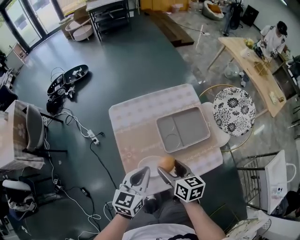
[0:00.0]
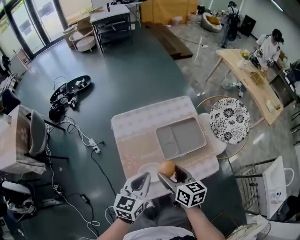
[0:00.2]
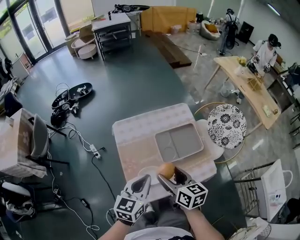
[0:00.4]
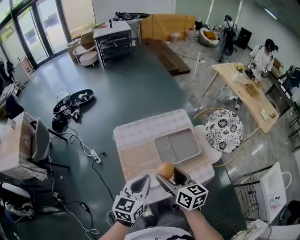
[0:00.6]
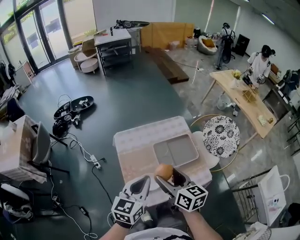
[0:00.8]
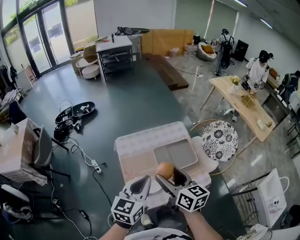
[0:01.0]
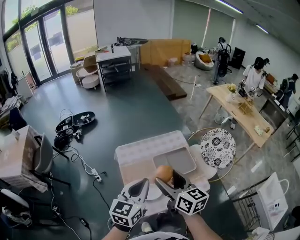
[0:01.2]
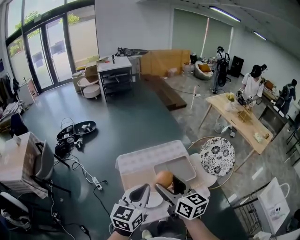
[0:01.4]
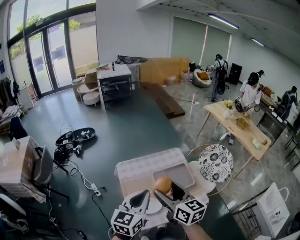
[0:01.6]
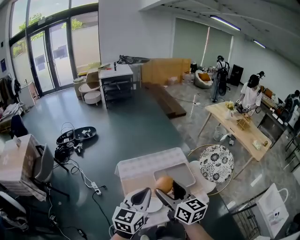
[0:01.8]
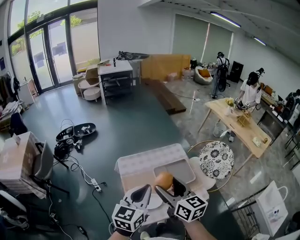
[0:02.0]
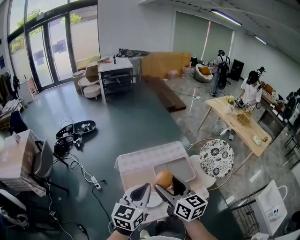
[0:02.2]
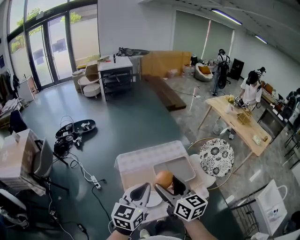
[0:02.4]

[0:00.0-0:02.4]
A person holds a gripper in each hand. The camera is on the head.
0:00.0 to 0:01.2: Both grippers move upward, about 20 cm. The right gripper rotates approximately 20 degrees.
0:01.2 to 0:02.4: The grippers move only a little.

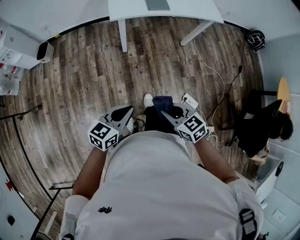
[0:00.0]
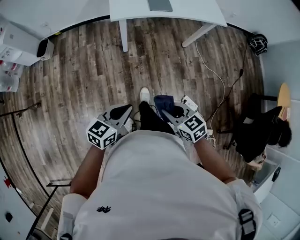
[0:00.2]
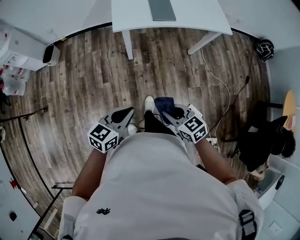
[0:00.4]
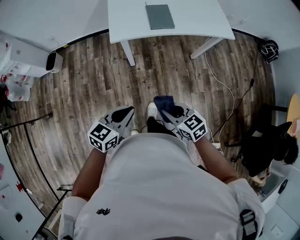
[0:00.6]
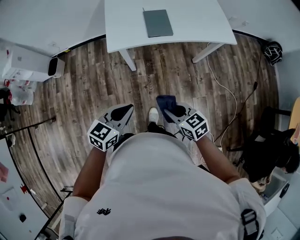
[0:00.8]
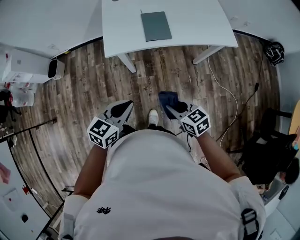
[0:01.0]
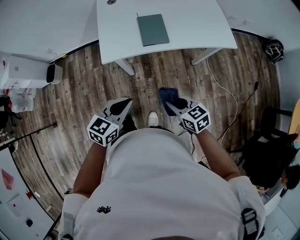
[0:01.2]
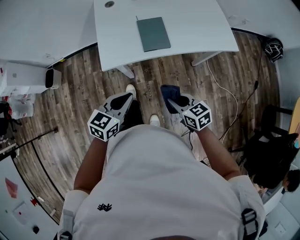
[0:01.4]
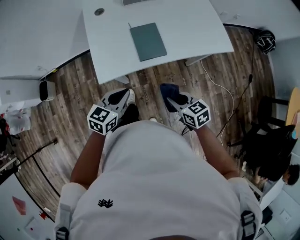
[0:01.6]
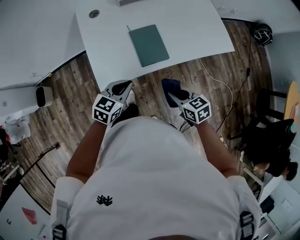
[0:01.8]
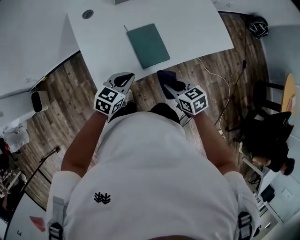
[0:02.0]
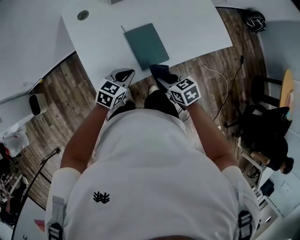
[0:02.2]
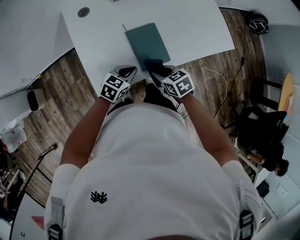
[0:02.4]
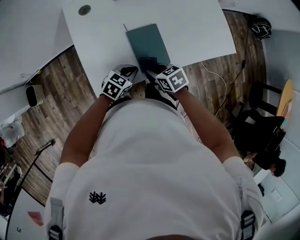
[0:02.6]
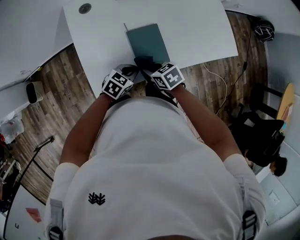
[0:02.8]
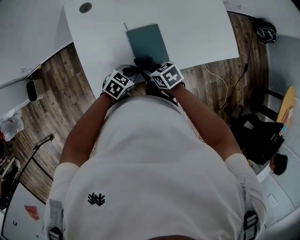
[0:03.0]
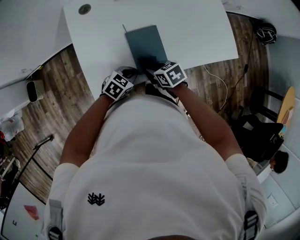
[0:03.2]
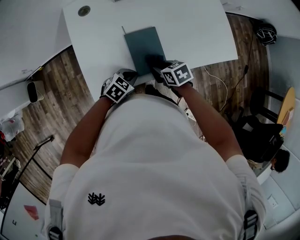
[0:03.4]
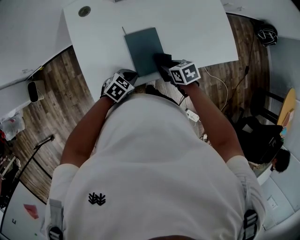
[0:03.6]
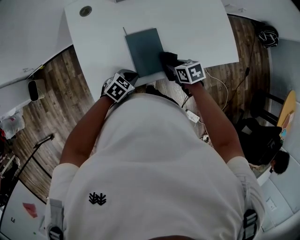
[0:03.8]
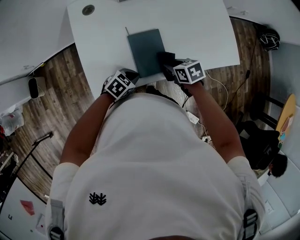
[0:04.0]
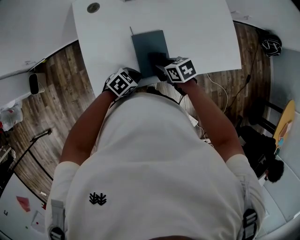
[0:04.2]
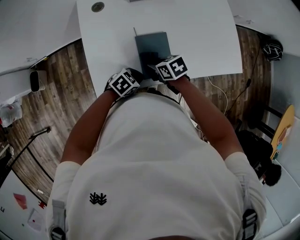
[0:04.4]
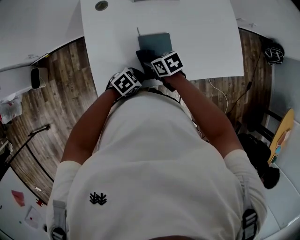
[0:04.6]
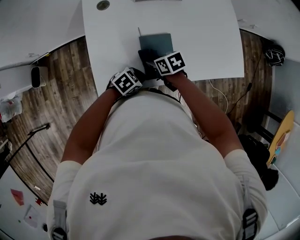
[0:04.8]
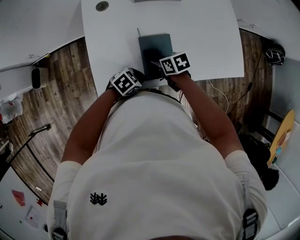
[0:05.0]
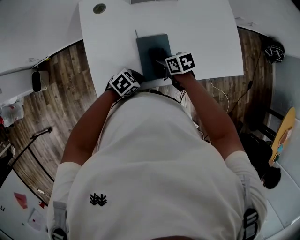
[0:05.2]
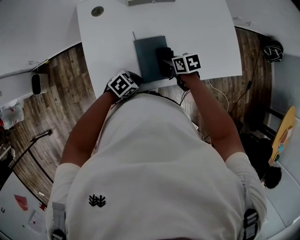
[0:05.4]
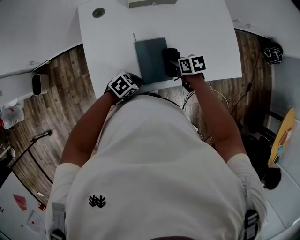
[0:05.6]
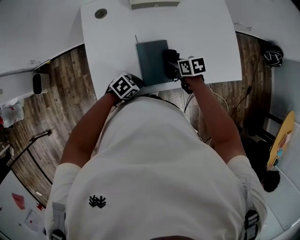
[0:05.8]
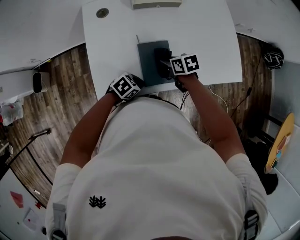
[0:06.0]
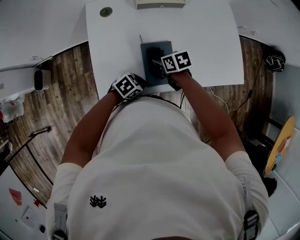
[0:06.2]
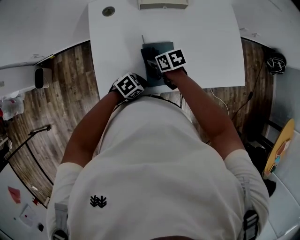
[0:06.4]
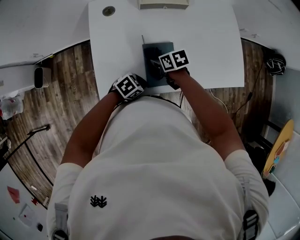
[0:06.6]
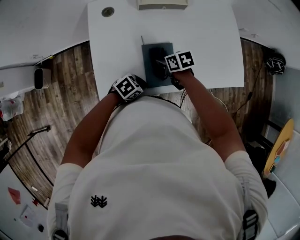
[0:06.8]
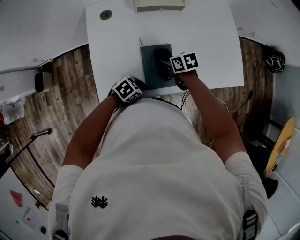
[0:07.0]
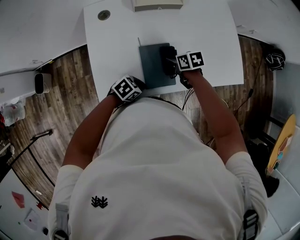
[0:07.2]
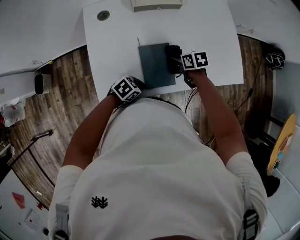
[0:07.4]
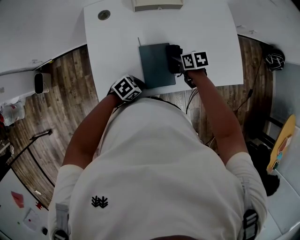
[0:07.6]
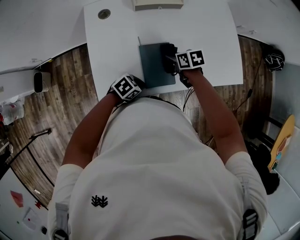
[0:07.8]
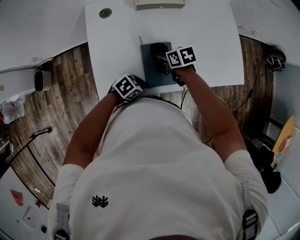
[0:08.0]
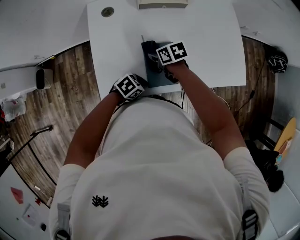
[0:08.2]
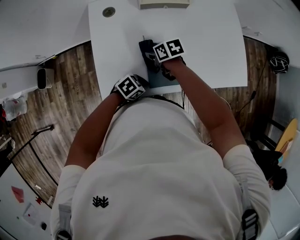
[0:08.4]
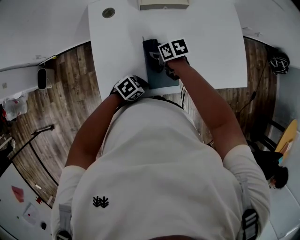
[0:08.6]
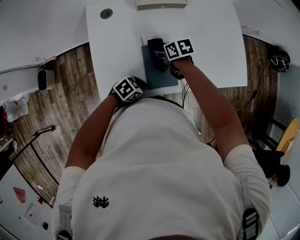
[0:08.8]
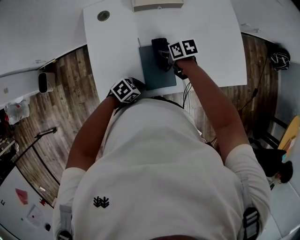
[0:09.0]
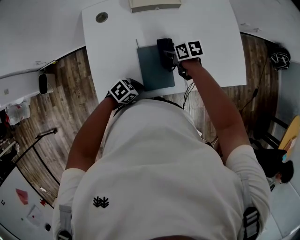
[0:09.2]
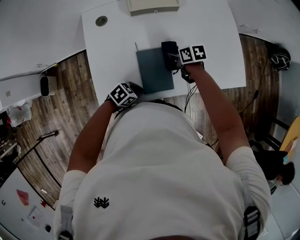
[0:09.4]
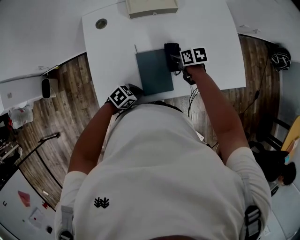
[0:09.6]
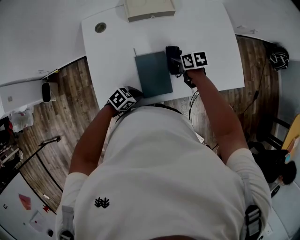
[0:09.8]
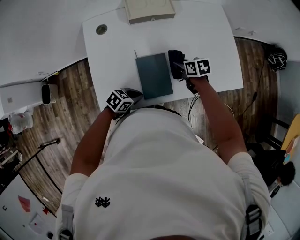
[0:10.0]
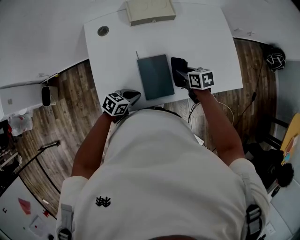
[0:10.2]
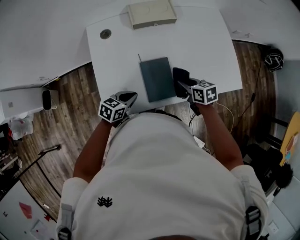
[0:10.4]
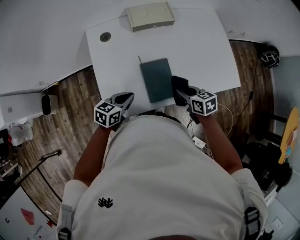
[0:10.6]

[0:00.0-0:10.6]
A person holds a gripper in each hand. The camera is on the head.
0:00.0 to 0:01.6: Both grippers are carried forward, some 40 cm.
0:01.6 to 0:03.0: The left gripper changes place by about 20 cm, and changes its angle by some 30 degrees, while the right gripper shifts by approximately 20 cm.
0:06.0 to 0:07.6: The right gripper moves approximately 5 cm.
0:09.0 to 0:10.6: The left gripper shifts about 10 cm upward, and rotates approximately 30 degrees, while the right gripper moves roughly 15 cm.

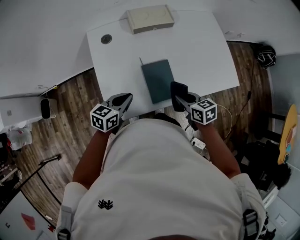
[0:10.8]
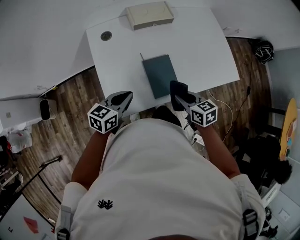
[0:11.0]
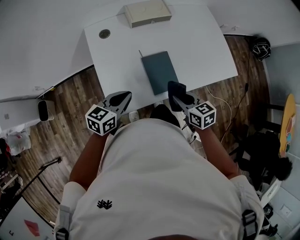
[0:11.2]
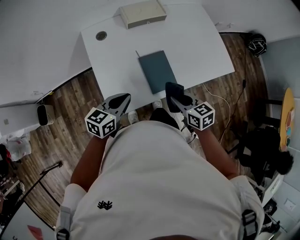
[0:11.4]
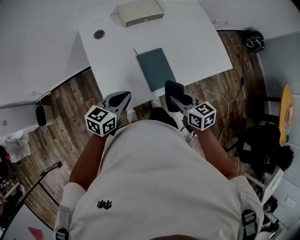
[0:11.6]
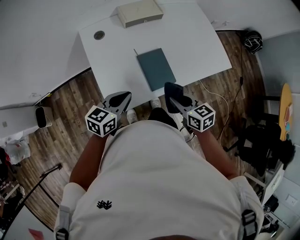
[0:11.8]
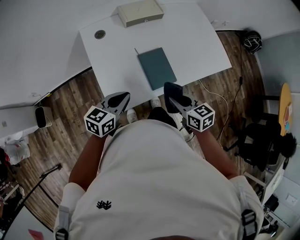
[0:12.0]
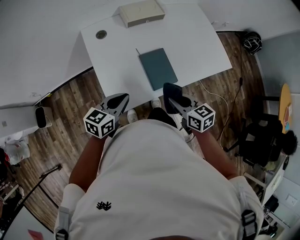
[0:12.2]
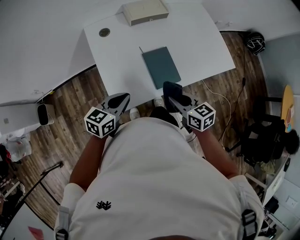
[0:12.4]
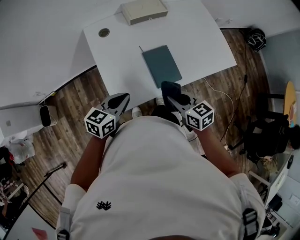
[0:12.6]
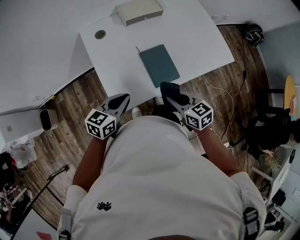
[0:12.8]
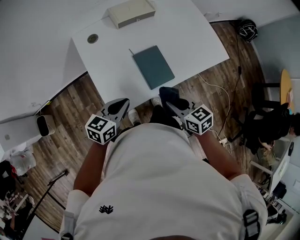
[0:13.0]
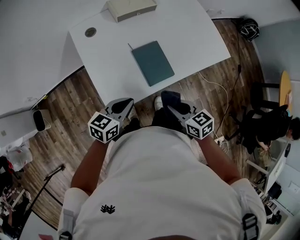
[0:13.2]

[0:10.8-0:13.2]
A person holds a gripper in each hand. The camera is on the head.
0:10.8 to 0:12.0: The left gripper shifts by approximately 5 cm; the right gripper goes about 10 cm backward.
0:12.0 to 0:13.2: The grippers stay close to where they were, moving slightly.

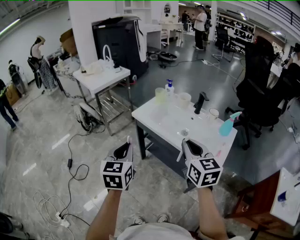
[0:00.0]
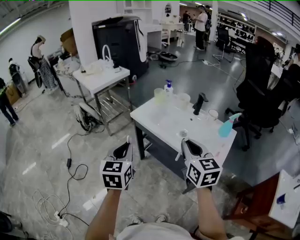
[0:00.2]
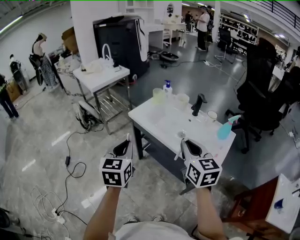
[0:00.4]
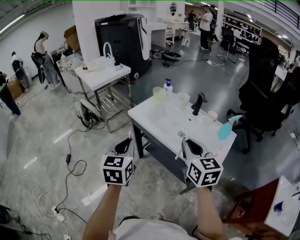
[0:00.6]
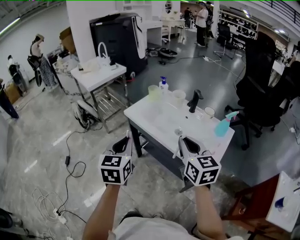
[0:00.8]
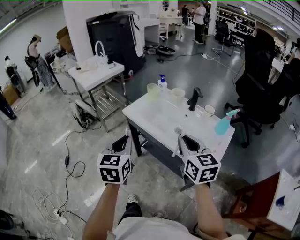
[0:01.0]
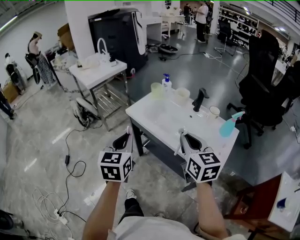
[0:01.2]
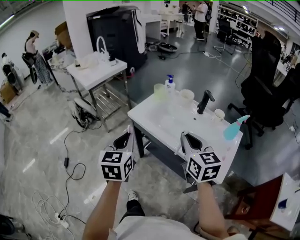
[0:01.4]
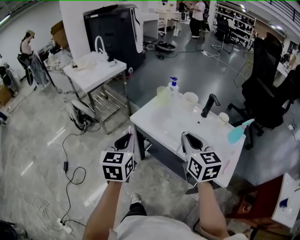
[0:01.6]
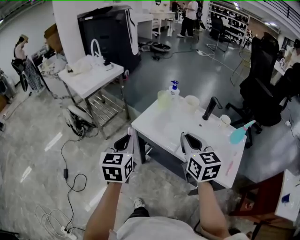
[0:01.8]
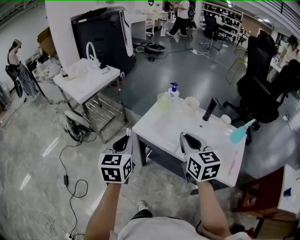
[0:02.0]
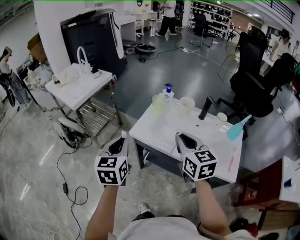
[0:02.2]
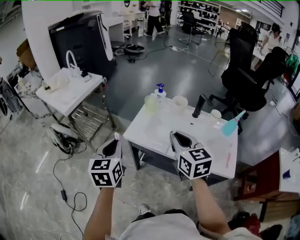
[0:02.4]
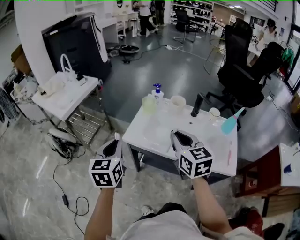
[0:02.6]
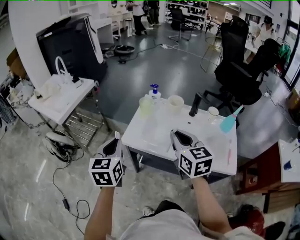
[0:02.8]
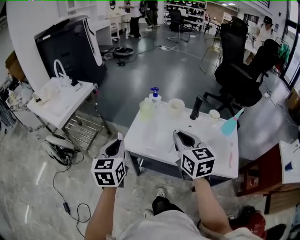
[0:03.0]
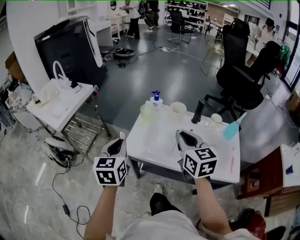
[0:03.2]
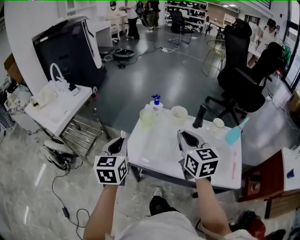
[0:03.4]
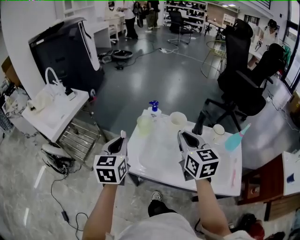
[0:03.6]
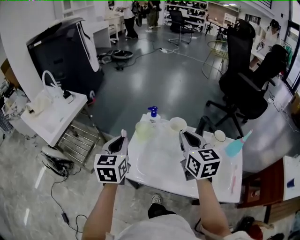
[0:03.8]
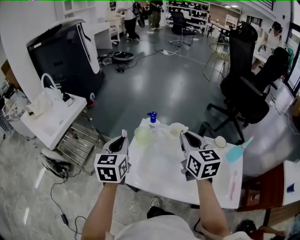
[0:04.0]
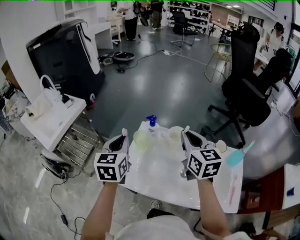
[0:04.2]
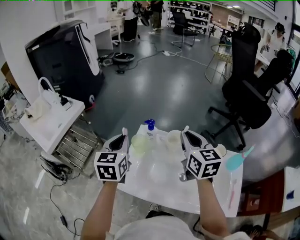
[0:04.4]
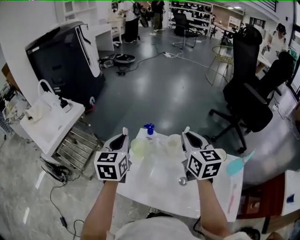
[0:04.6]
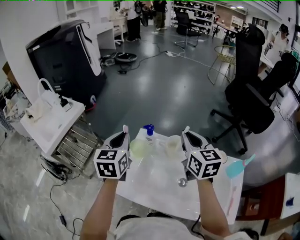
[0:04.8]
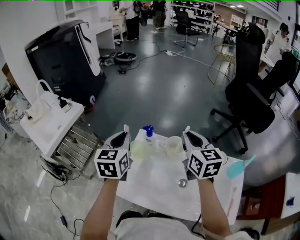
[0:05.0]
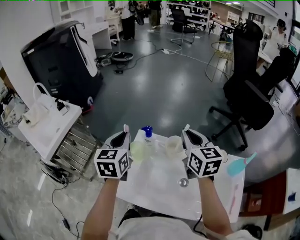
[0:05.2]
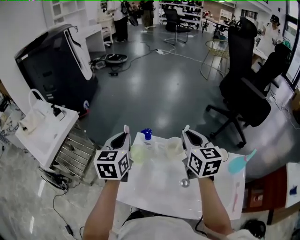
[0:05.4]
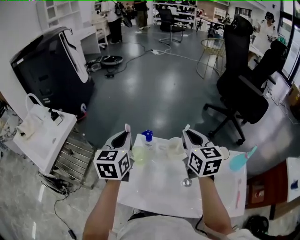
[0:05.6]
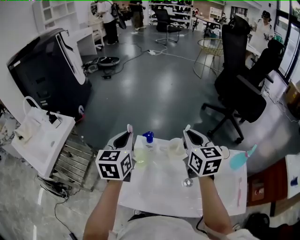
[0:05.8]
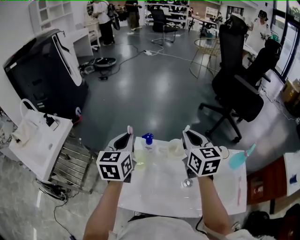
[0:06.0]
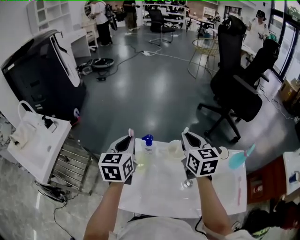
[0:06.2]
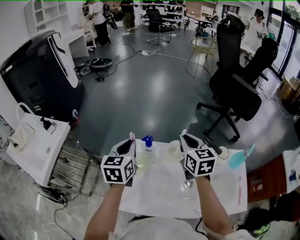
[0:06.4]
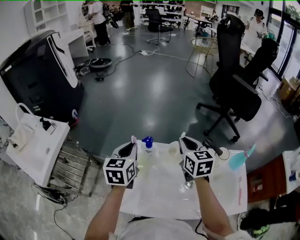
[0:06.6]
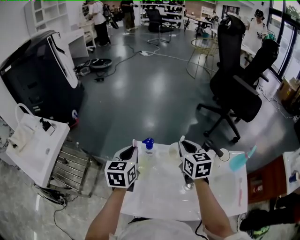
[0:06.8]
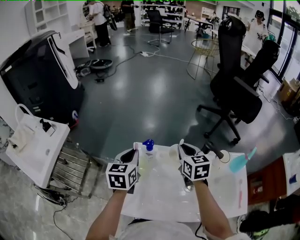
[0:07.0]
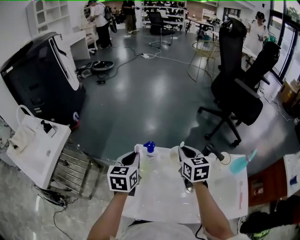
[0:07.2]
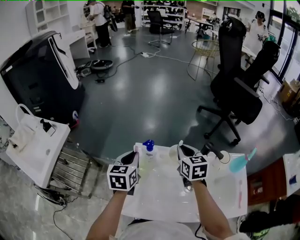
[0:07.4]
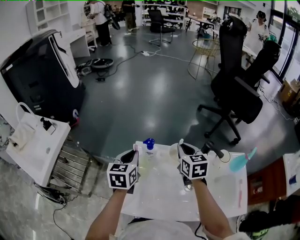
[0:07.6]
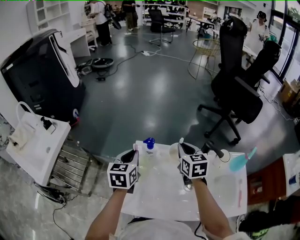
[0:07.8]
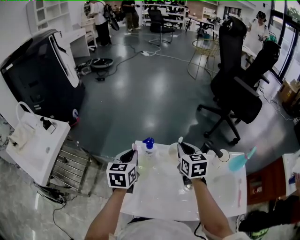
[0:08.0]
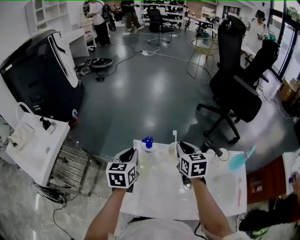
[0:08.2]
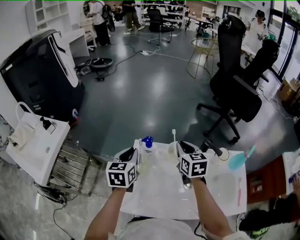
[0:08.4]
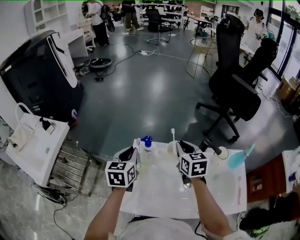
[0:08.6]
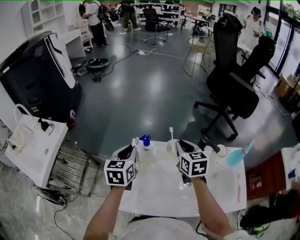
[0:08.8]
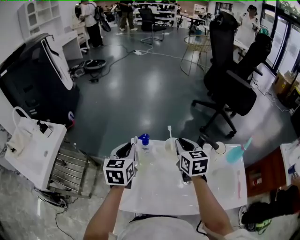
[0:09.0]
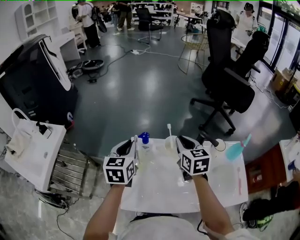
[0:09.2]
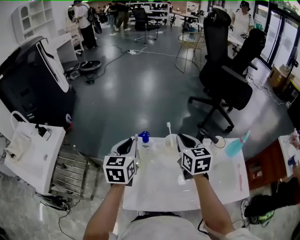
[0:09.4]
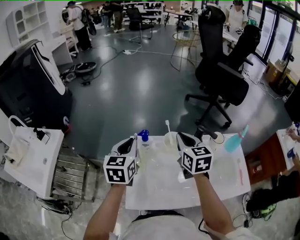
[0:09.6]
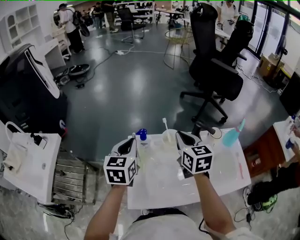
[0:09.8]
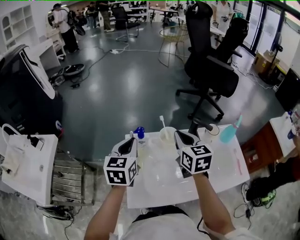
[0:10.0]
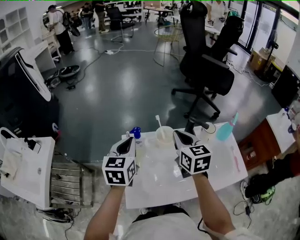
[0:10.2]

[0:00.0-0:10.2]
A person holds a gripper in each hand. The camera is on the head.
0:00.0 to 0:01.4: Both grippers move forward, about 10 cm.
0:01.4 to 0:03.0: Both grippers travel together forward and to the left, some 20 cm.
0:03.0 to 0:04.4: Both grippers move forward, about 20 cm.
0:04.4 to 0:05.8: The grippers both shift forward by approximately 5 cm.
0:05.8 to 0:07.2: Both grippers travel together downward, some 10 cm.
0:07.2 to 0:08.8: Both grippers stay about where they are.
0:08.8 to 0:10.2: The right gripper shifts some 10 cm backward and upward; the left gripper moves some 5 cm.
